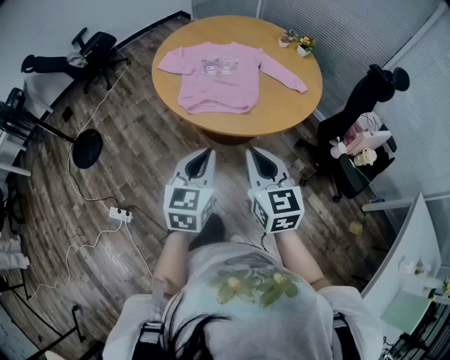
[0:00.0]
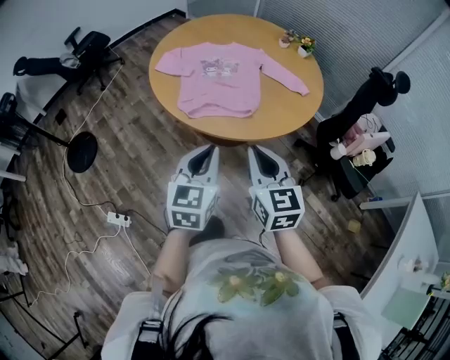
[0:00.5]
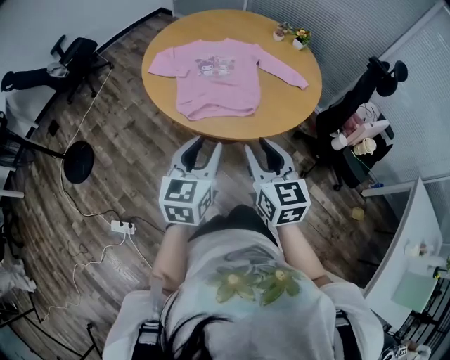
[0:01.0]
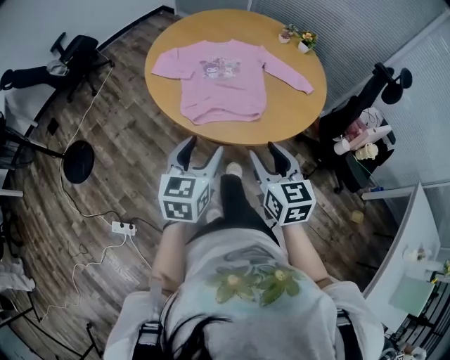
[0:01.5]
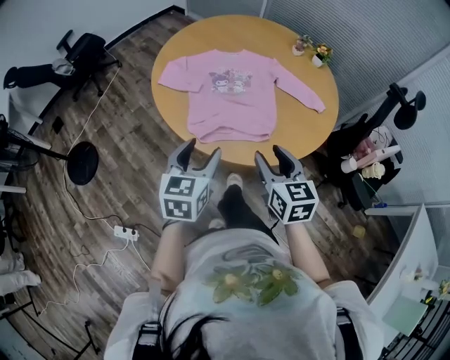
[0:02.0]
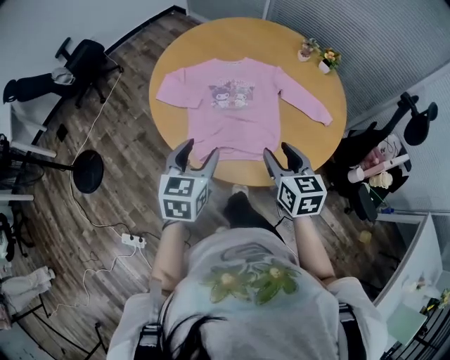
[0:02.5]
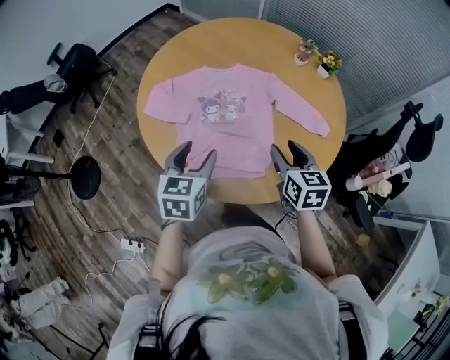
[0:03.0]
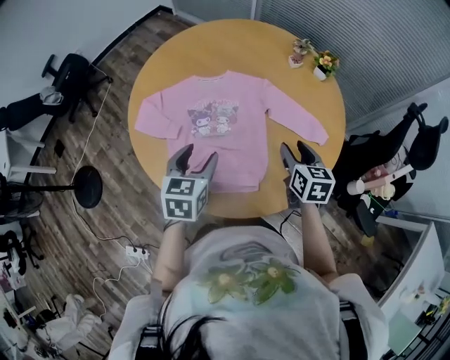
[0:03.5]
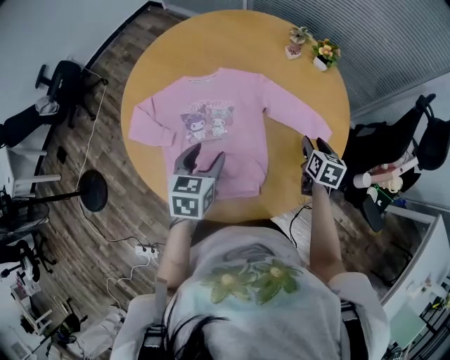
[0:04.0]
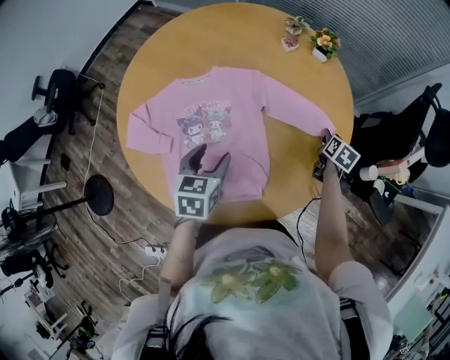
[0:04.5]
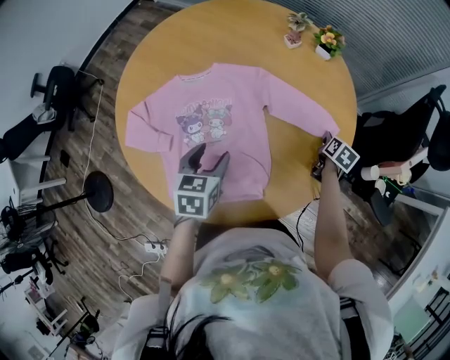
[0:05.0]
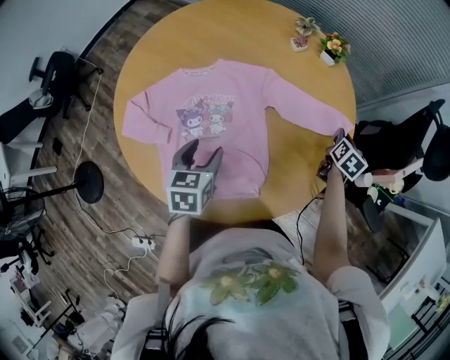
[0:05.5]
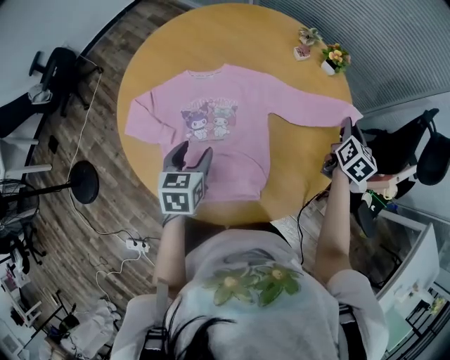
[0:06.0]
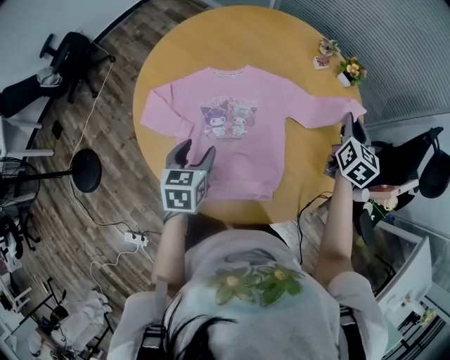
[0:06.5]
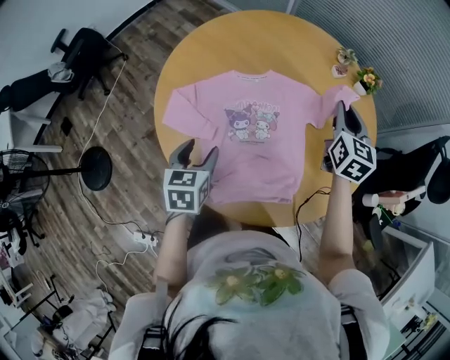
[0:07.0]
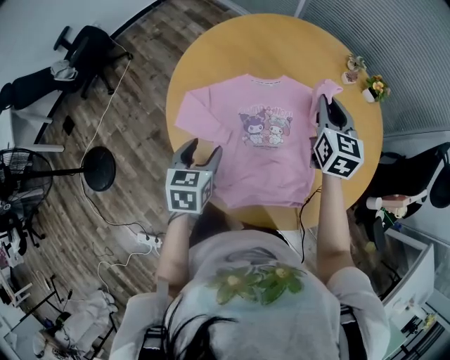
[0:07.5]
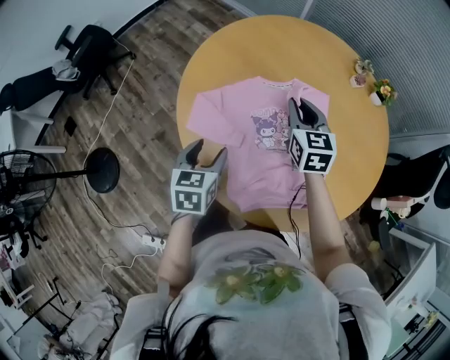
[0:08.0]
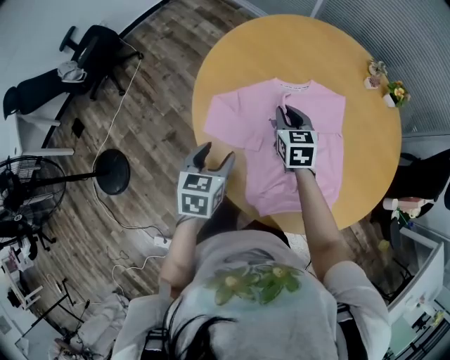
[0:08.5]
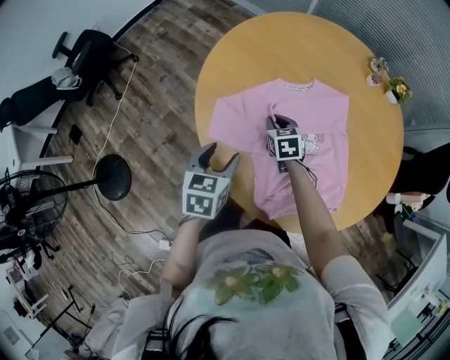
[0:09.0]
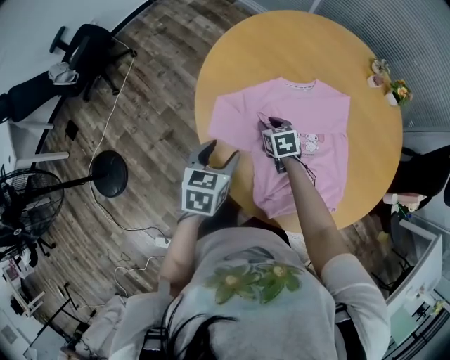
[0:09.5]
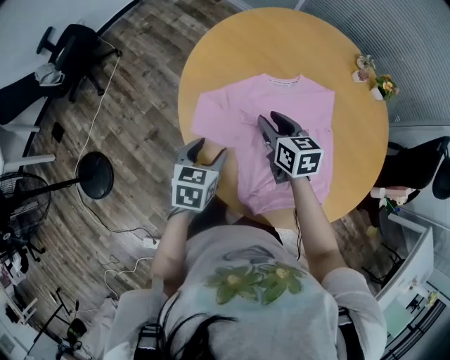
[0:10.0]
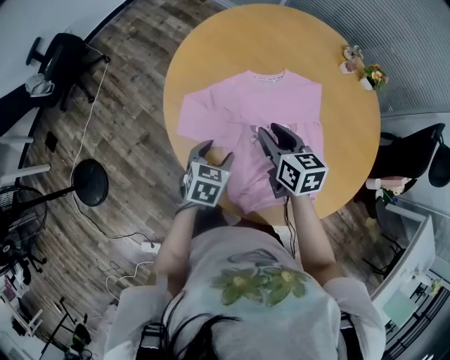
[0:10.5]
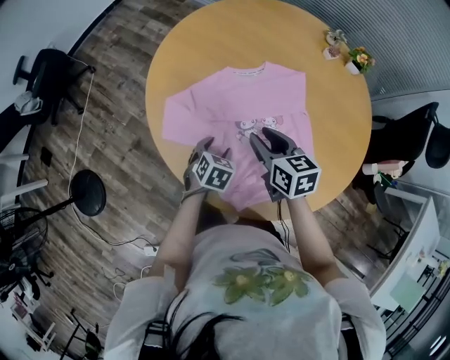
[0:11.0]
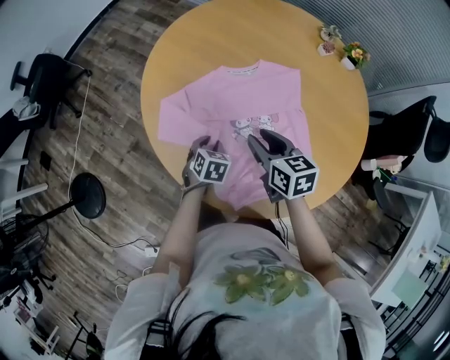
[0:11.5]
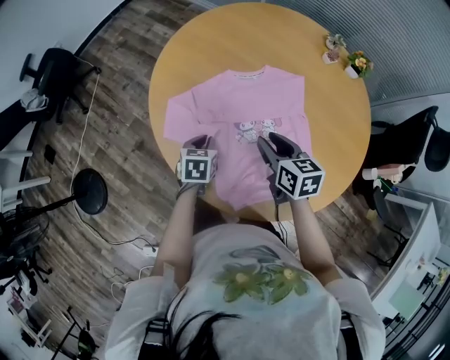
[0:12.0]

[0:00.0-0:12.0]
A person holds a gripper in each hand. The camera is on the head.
0:00.0 to 0:02.0: The right gripper heads forward, covering about 20 cm, and opens its fingers; the left gripper is displaced forward and to the left by about 20 cm, and opens.
0:02.0 to 0:04.0: The left gripper shifts roughly 25 cm forward; the right gripper travels forward, to the right and downward by some 40 cm, and turns by roughly 30 degrees.
0:04.0 to 0:06.0: The left gripper goes about 5 cm to the left. Meanwhile the right gripper goes some 15 cm upward, forward and to the right, rotates some 20 degrees, and closes up.
0:06.0 to 0:08.0: The left gripper heads to the left, covering roughly 20 cm; the right gripper moves to the left, approximately 50 cm, and changes its angle by some 40 degrees.
0:08.0 to 0:10.0: The right gripper travels to the left and downward by approximately 15 cm, turns by about 20 degrees, and opens, while the left gripper ends up approximately 5 cm from where it was.
0:10.0 to 0:12.0: The left gripper is displaced downward and to the right by approximately 10 cm, and closes, while the right gripper goes some 15 cm to the right and backward.

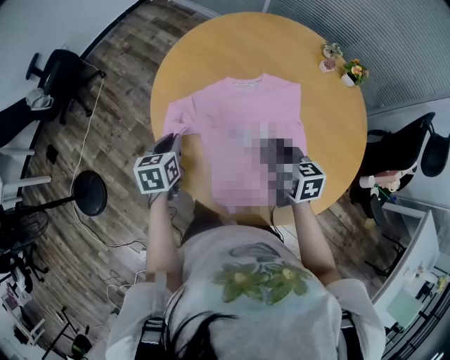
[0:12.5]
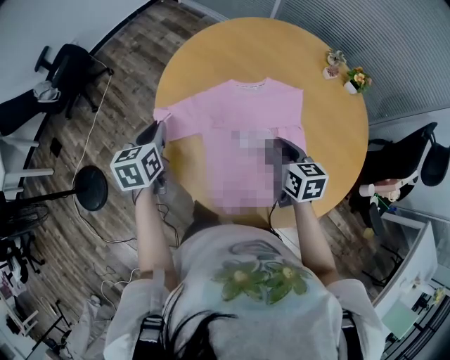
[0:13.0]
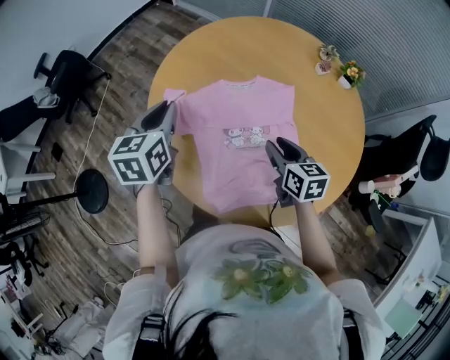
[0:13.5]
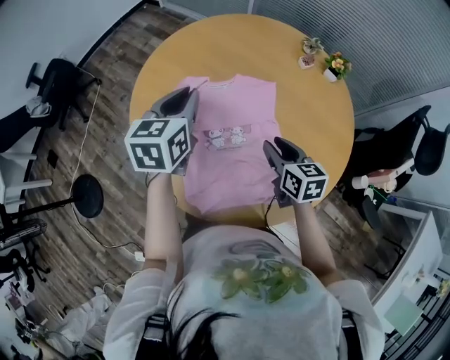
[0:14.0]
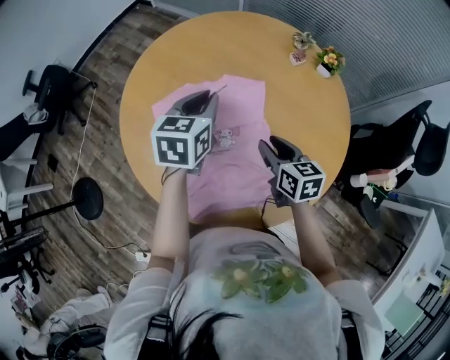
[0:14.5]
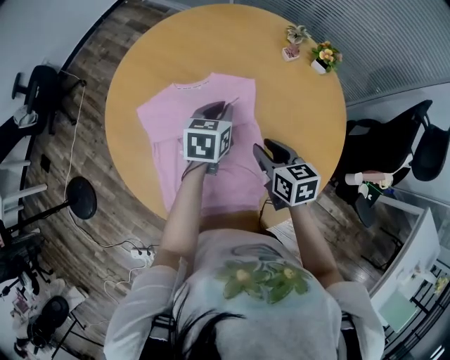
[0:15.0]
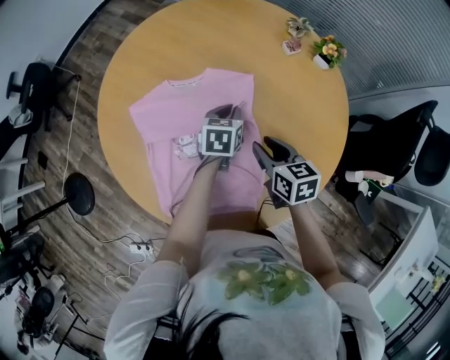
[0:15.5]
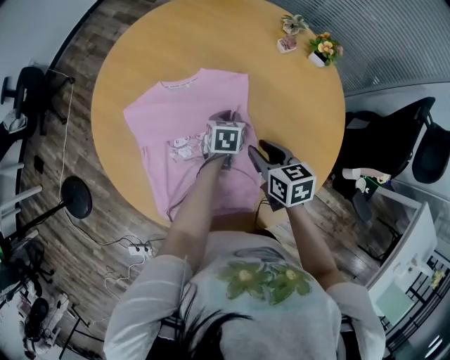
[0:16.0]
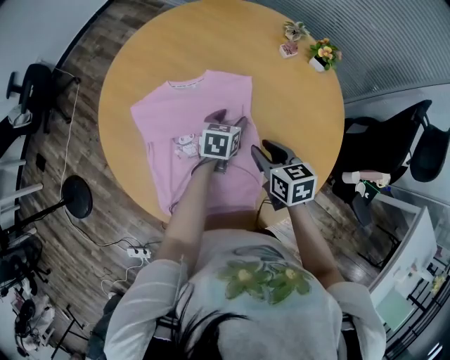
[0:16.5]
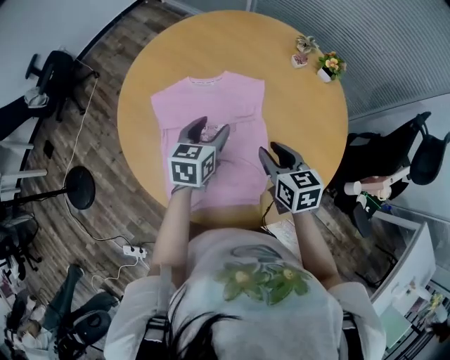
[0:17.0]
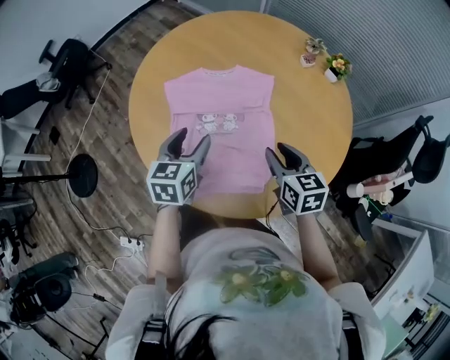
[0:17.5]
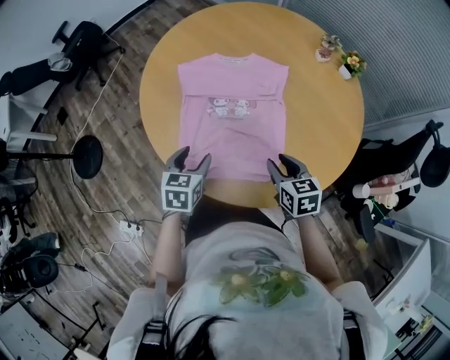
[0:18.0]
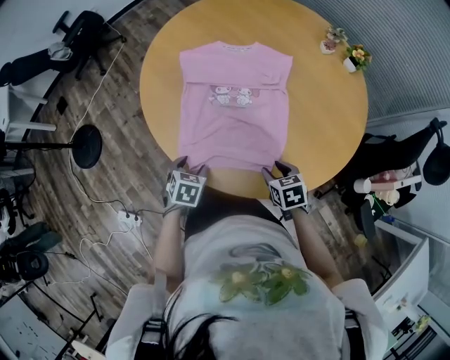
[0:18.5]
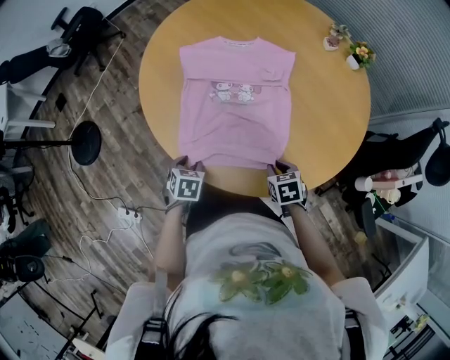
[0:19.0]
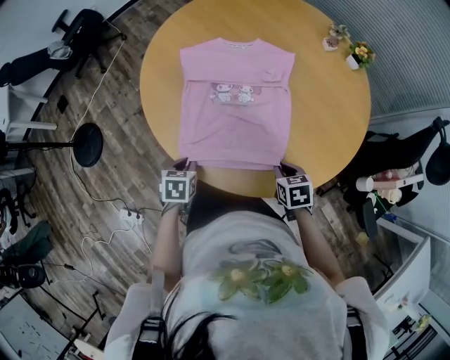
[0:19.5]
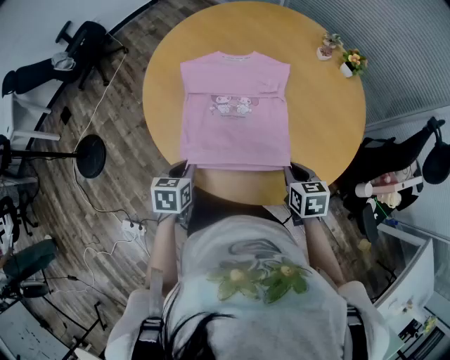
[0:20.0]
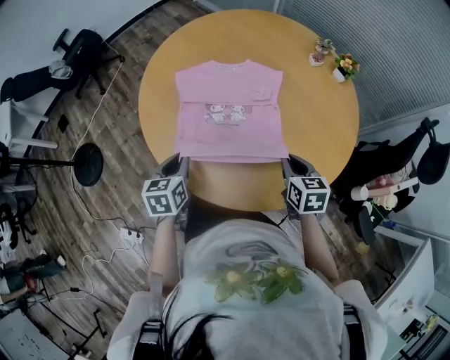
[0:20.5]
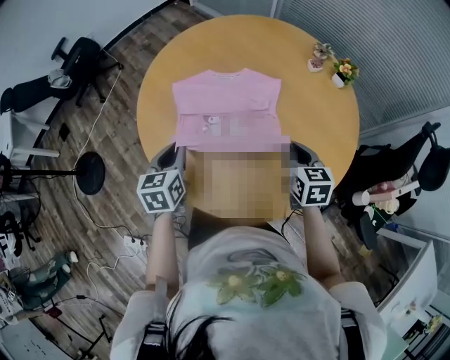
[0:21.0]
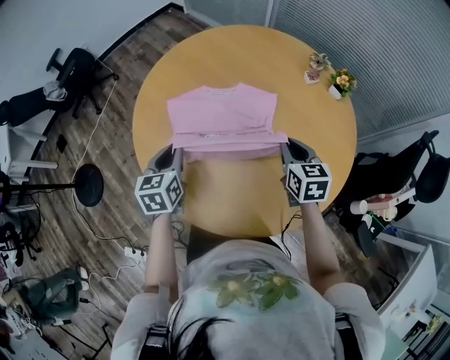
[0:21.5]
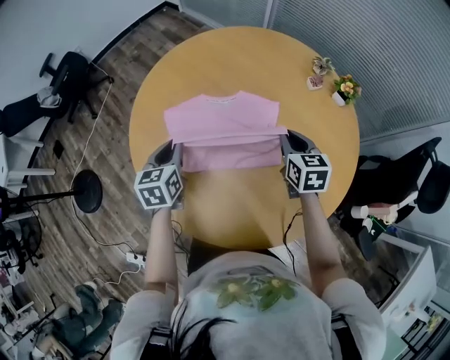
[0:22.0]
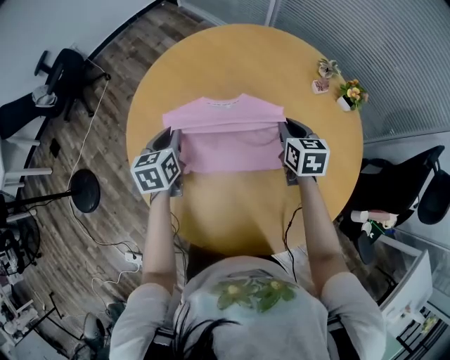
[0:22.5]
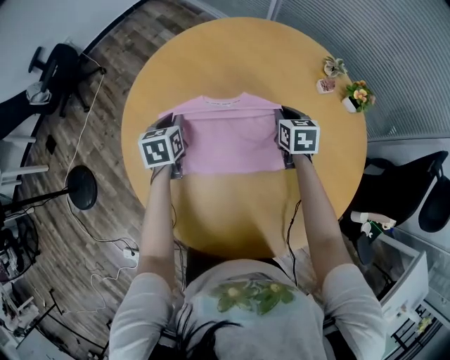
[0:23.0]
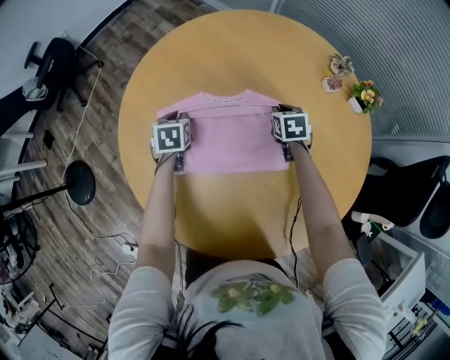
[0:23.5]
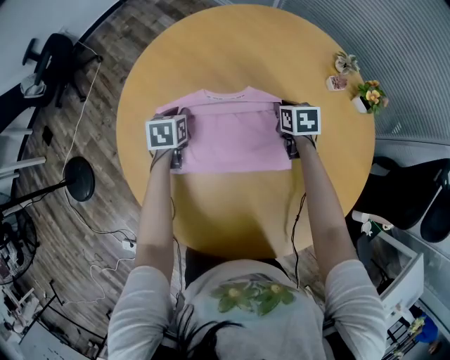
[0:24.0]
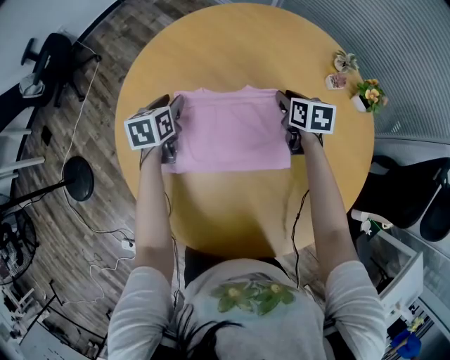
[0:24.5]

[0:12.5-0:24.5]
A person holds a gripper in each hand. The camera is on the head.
0:12.5 to 0:14.5: The left gripper is displaced to the right and upward by about 30 cm, and changes its angle by about 20 degrees, while the right gripper heads to the right, covering some 15 cm.
0:14.5 to 0:16.5: The left gripper travels downward and to the right by about 25 cm, and opens. Meanwhile the right gripper shifts by approximately 5 cm.
0:16.5 to 0:18.5: The left gripper heads backward and to the left, covering some 40 cm, and changes its angle by approximately 30 degrees, while the right gripper is displaced backward and downward by about 20 cm, and turns by about 30 degrees.
0:18.5 to 0:20.5: The left gripper travels upward and forward by roughly 15 cm, turns by approximately 30 degrees, and closes its fingers; the right gripper shifts about 15 cm upward, forward and to the right, changes its angle by about 20 degrees, and closes its fingers.
0:20.5 to 0:22.5: Both grippers move forward, about 30 cm.
0:22.5 to 0:24.5: Both grippers move forward and downward, about 15 cm. The left gripper opens its fingers.

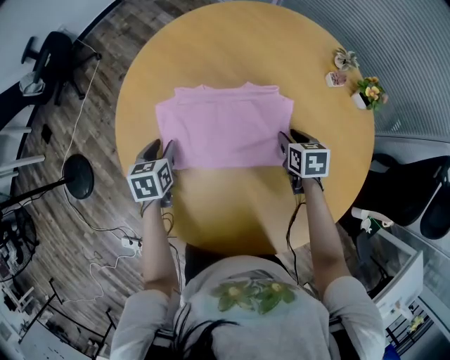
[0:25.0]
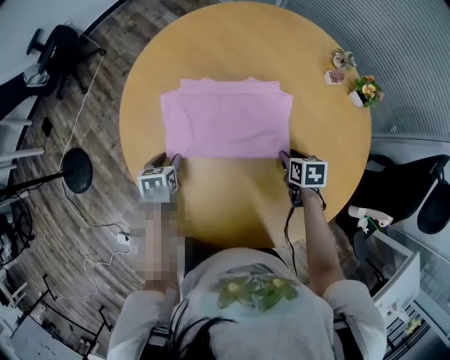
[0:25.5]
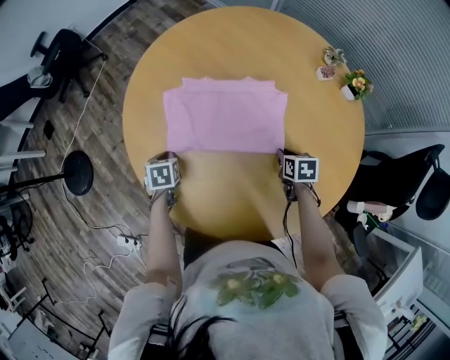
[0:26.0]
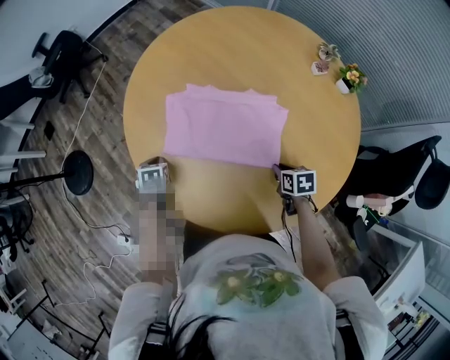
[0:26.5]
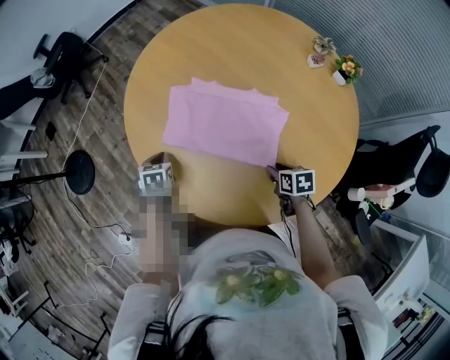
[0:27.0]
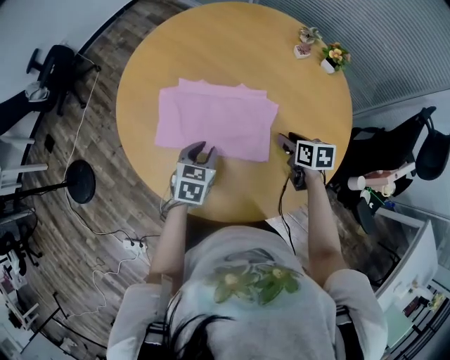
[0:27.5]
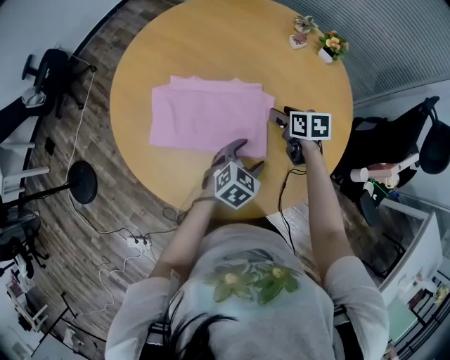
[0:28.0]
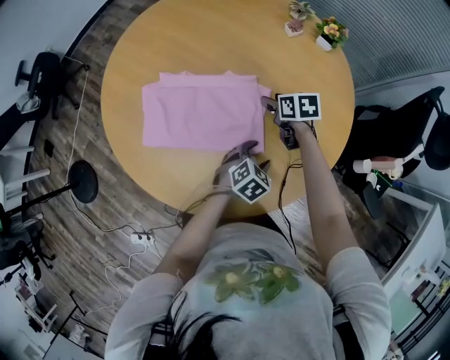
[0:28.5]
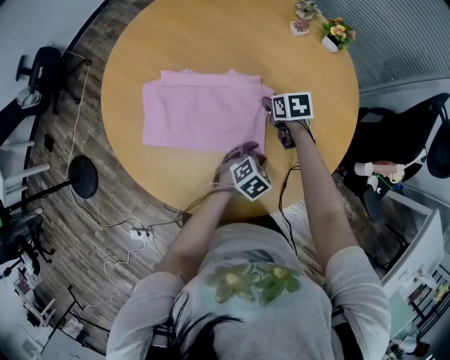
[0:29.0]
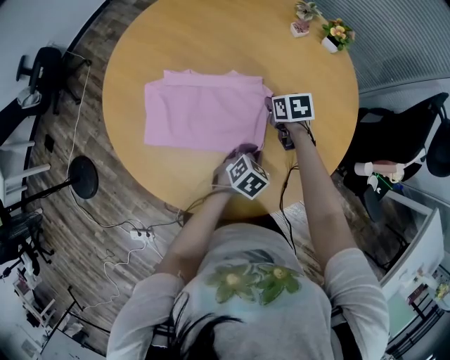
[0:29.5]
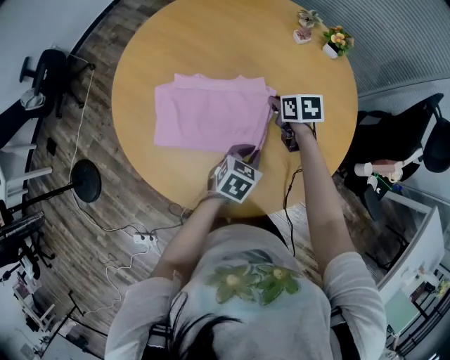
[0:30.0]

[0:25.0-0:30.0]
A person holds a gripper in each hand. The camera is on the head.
0:25.0 to 0:27.5: The left gripper heads backward and to the right, covering about 25 cm, and rotates approximately 30 degrees, while the right gripper goes about 15 cm backward, and closes, then reopens.
0:27.5 to 0:30.0: The left gripper is displaced to the right by some 15 cm, swivels approximately 20 degrees, and opens and closes again; the right gripper heads forward and to the left, covering about 10 cm, and closes its fingers.
